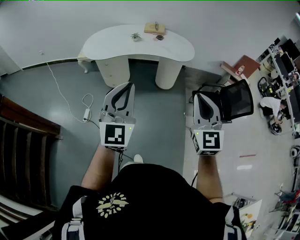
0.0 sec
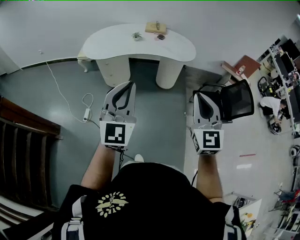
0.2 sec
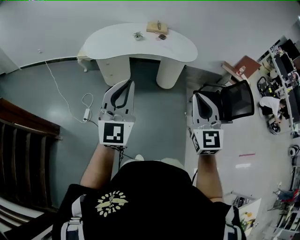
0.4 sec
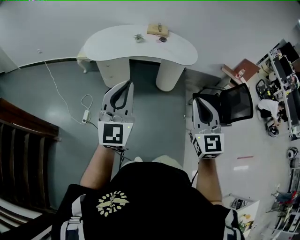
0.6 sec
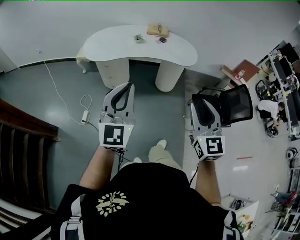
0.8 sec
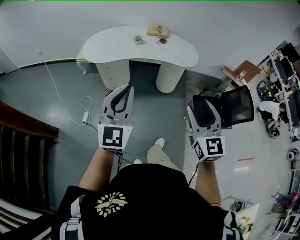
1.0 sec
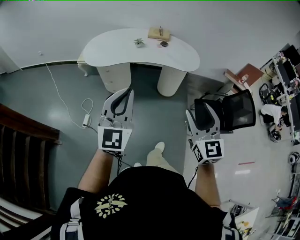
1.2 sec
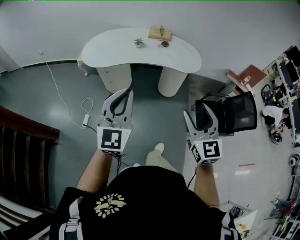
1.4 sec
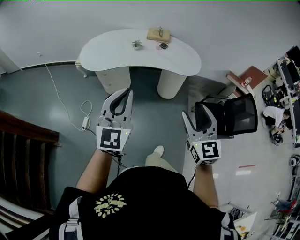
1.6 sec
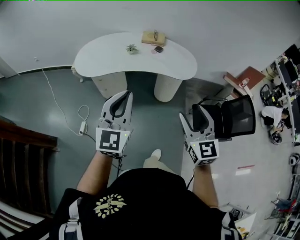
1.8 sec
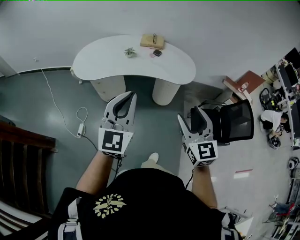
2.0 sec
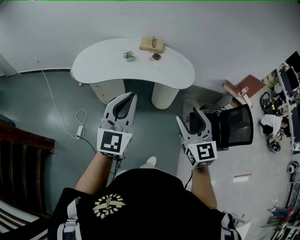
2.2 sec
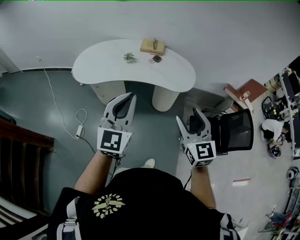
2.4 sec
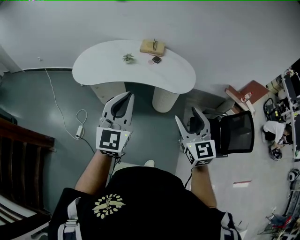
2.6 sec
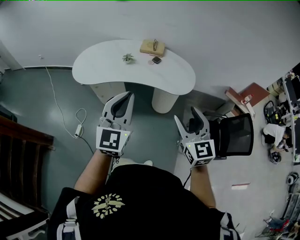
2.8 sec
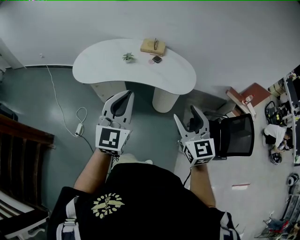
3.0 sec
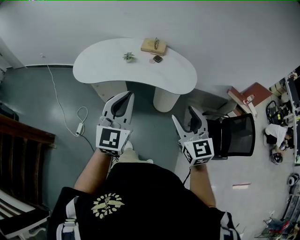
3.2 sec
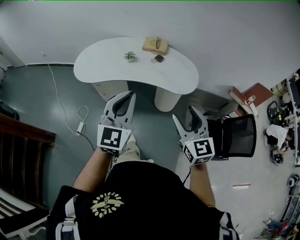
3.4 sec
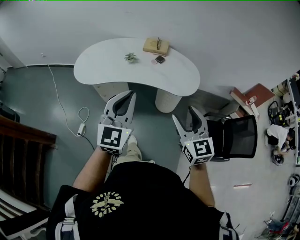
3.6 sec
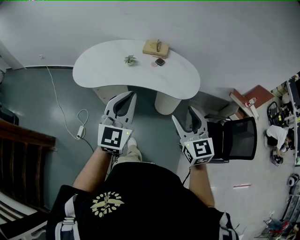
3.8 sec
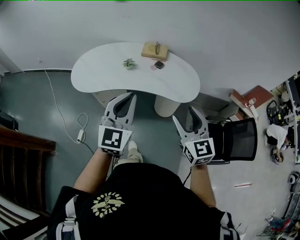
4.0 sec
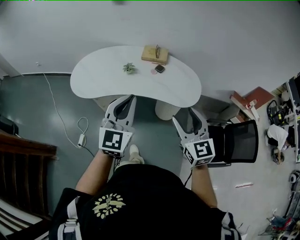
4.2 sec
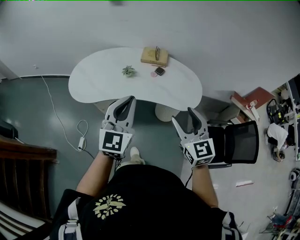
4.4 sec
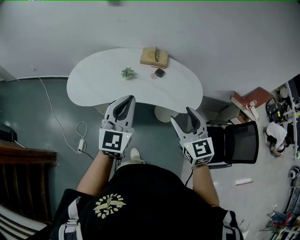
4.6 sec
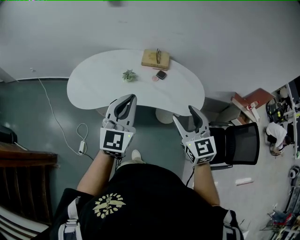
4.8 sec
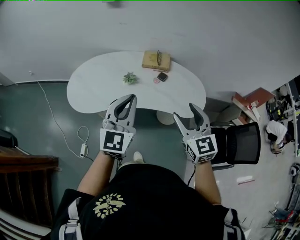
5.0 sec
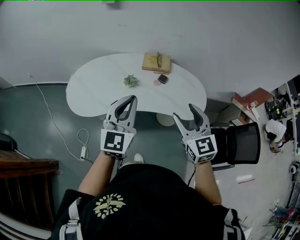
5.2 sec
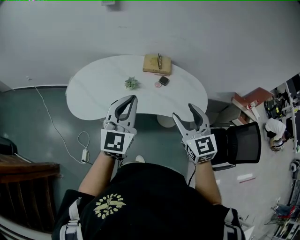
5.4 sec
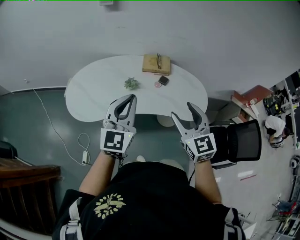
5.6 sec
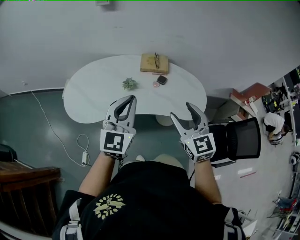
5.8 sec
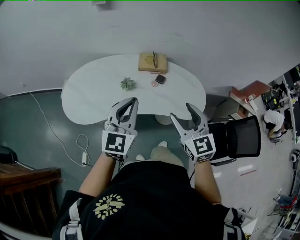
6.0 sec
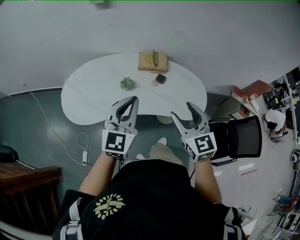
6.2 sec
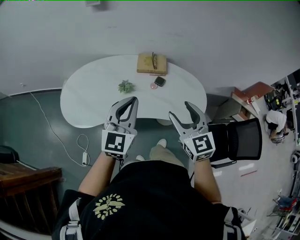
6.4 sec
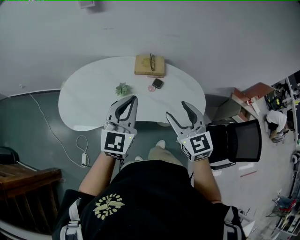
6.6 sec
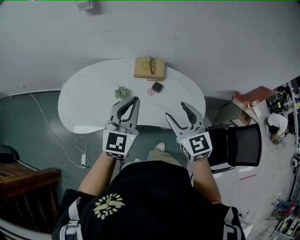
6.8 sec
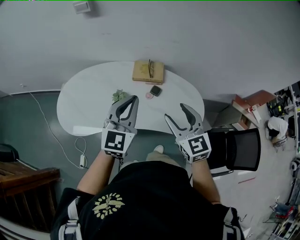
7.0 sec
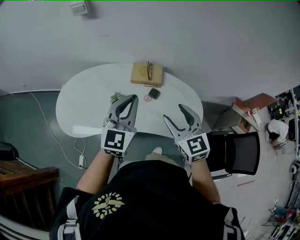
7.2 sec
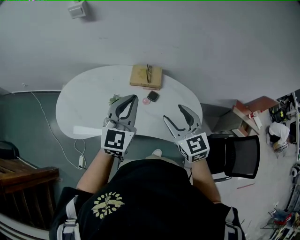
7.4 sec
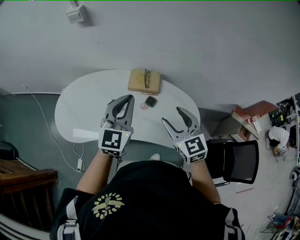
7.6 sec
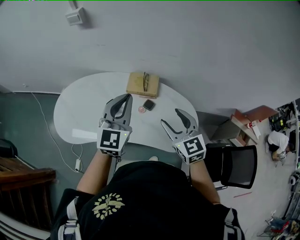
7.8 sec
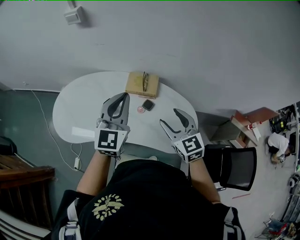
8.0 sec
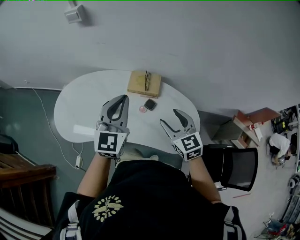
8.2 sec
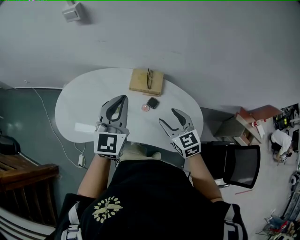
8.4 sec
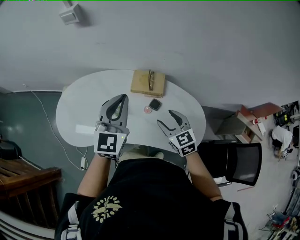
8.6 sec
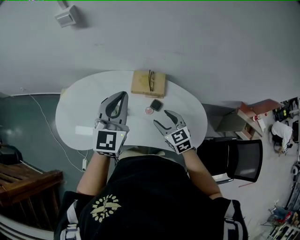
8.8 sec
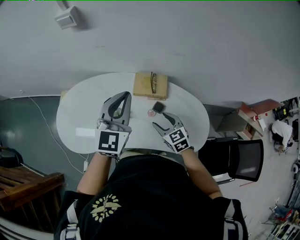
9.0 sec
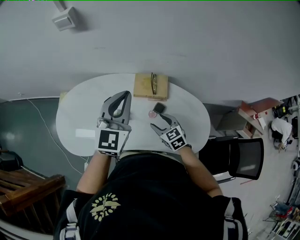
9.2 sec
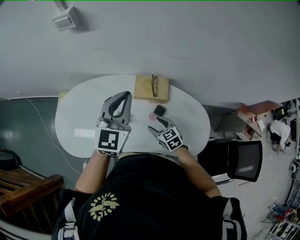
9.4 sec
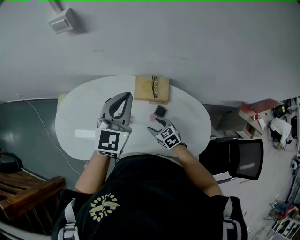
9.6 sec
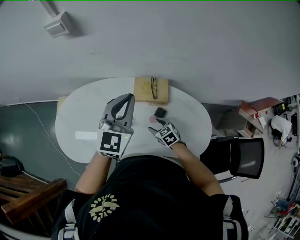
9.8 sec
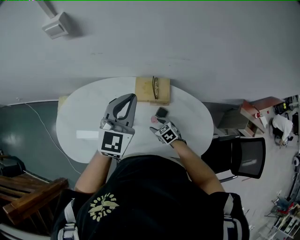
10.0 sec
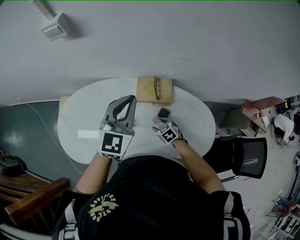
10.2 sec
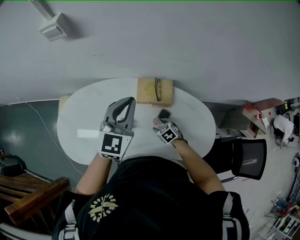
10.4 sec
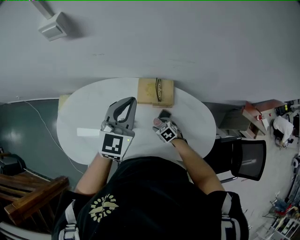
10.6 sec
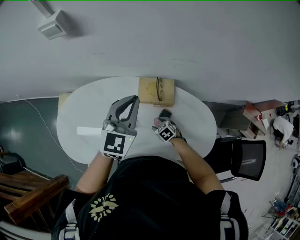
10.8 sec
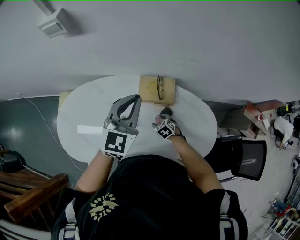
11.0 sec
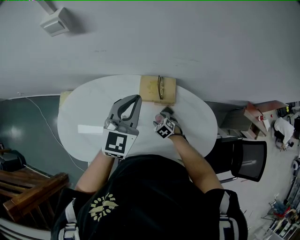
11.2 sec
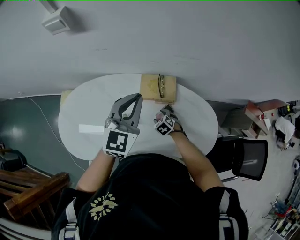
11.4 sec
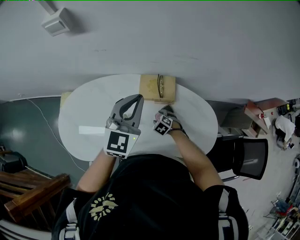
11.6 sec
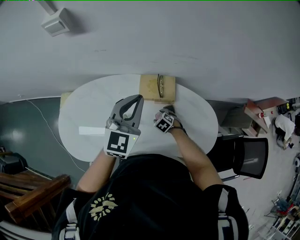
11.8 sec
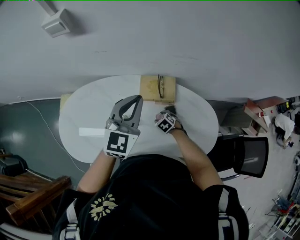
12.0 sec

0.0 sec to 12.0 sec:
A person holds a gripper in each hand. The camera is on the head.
0.0 sec to 1.6 sec: Both grippers travel together forward, about 15 cm. The right gripper opens its fingers.
1.6 sec to 3.0 sec: Both grippers travel together forward and to the right, roughly 20 cm.
3.0 sec to 4.4 sec: Both grippers travel together forward, about 15 cm.
4.4 sec to 6.0 sec: The grippers both shift forward and to the left by some 15 cm.
6.0 sec to 7.6 sec: Both grippers move forward and to the right, roughly 20 cm.
7.6 sec to 9.0 sec: The right gripper heads downward, forward and to the left, covering approximately 20 cm. Meanwhile the left gripper heads forward, covering roughly 10 cm.
9.0 sec to 10.4 sec: The left gripper travels forward by some 10 cm. Meanwhile the right gripper heads downward, covering approximately 20 cm, and turns by some 30 degrees.
10.4 sec to 12.0 sec: The grippers make only small movements.

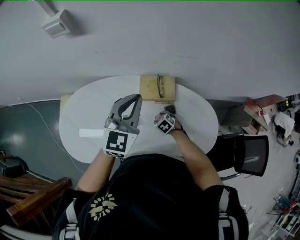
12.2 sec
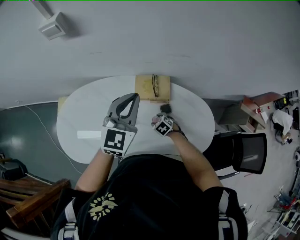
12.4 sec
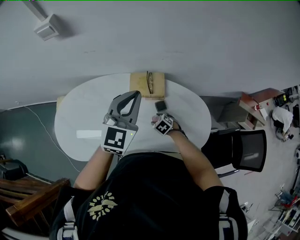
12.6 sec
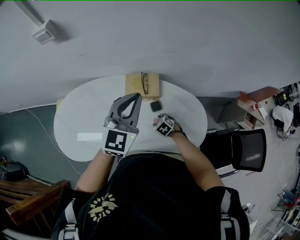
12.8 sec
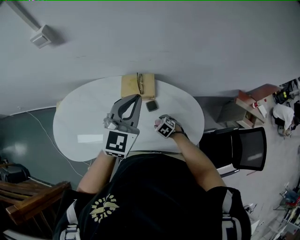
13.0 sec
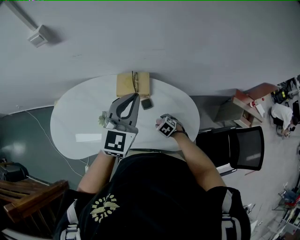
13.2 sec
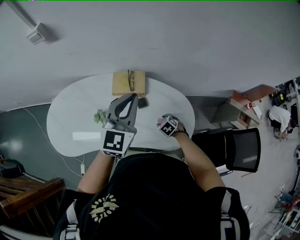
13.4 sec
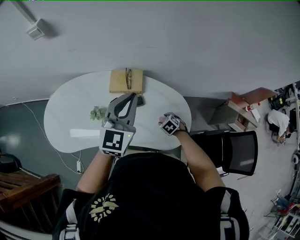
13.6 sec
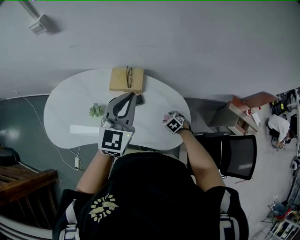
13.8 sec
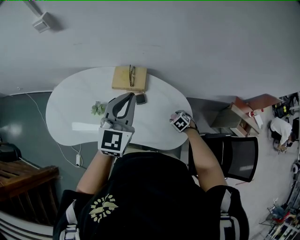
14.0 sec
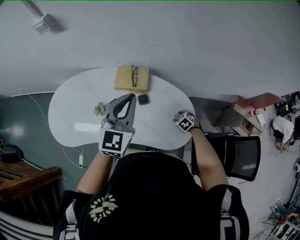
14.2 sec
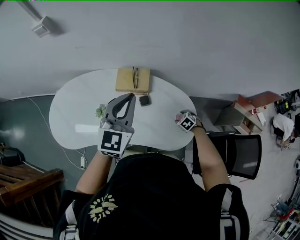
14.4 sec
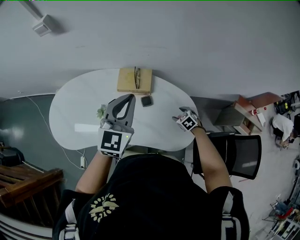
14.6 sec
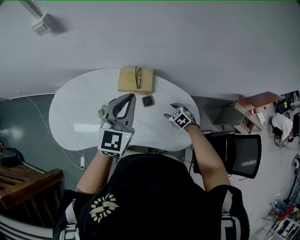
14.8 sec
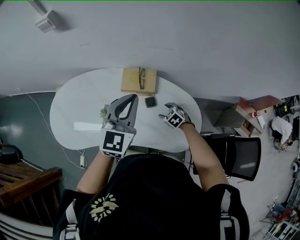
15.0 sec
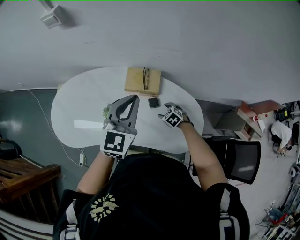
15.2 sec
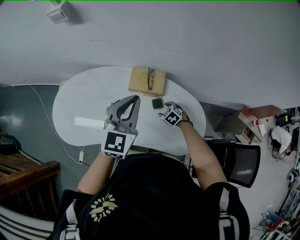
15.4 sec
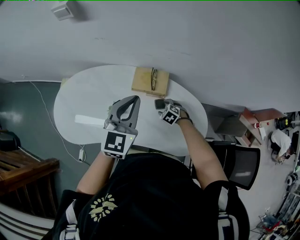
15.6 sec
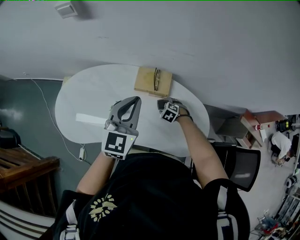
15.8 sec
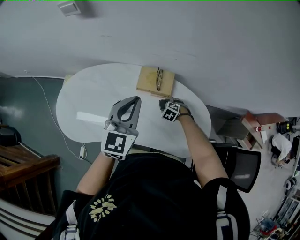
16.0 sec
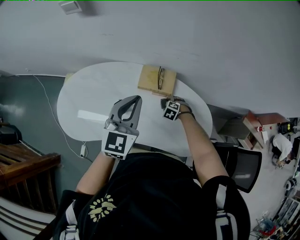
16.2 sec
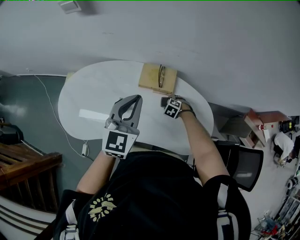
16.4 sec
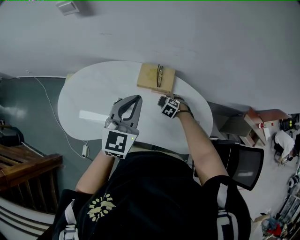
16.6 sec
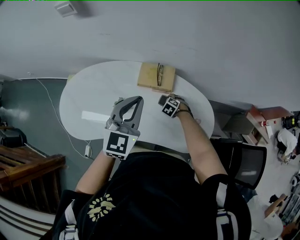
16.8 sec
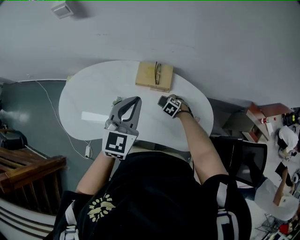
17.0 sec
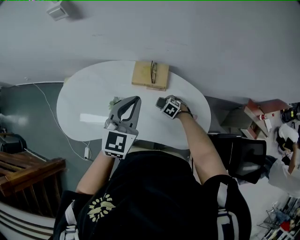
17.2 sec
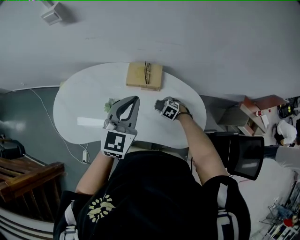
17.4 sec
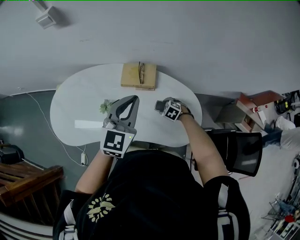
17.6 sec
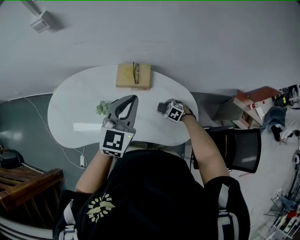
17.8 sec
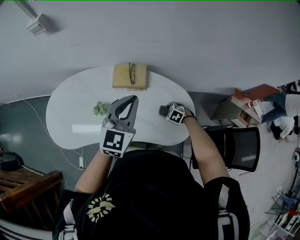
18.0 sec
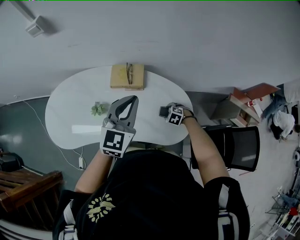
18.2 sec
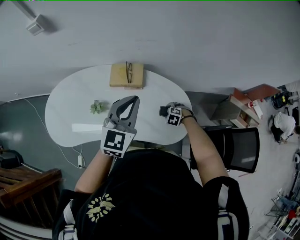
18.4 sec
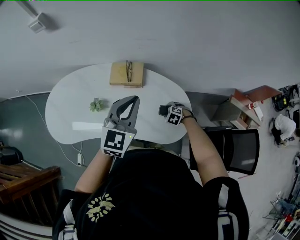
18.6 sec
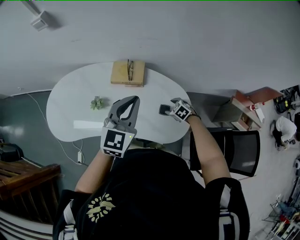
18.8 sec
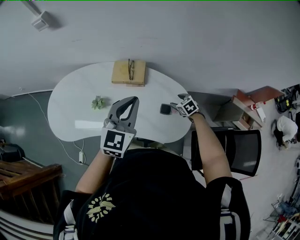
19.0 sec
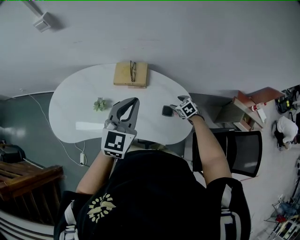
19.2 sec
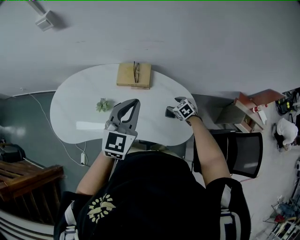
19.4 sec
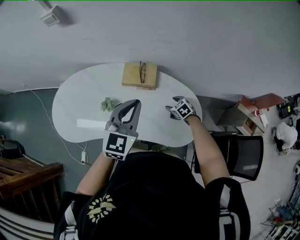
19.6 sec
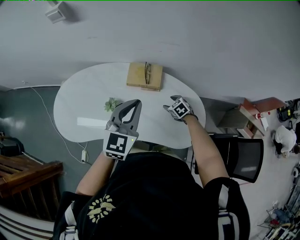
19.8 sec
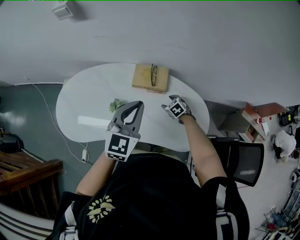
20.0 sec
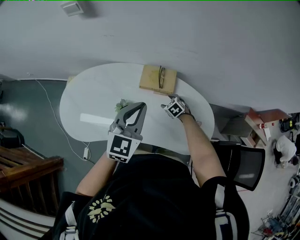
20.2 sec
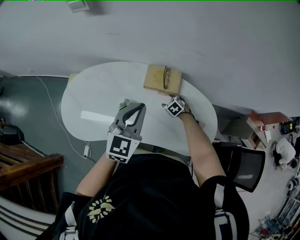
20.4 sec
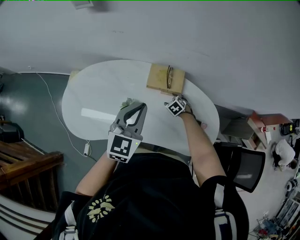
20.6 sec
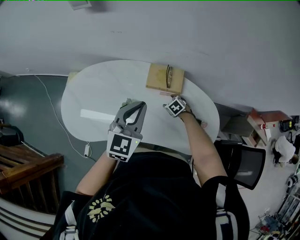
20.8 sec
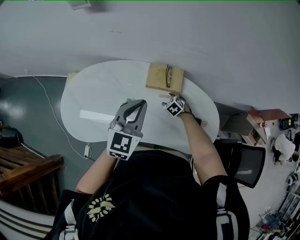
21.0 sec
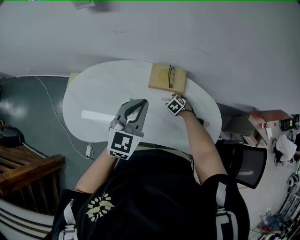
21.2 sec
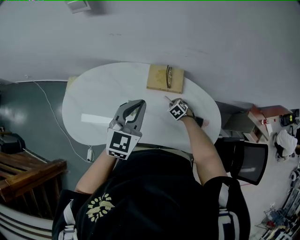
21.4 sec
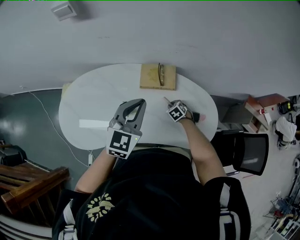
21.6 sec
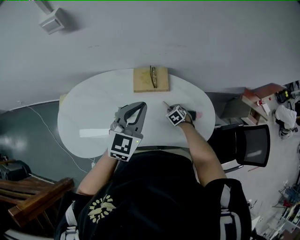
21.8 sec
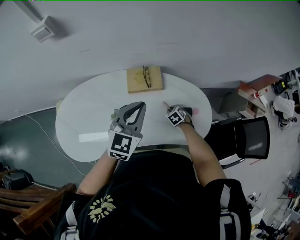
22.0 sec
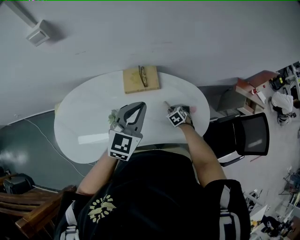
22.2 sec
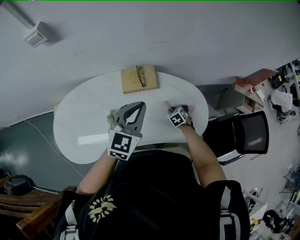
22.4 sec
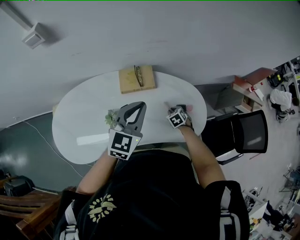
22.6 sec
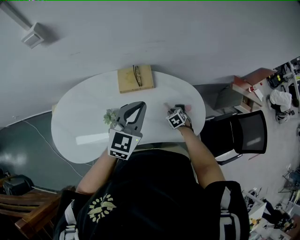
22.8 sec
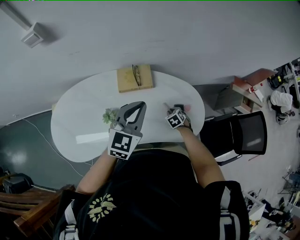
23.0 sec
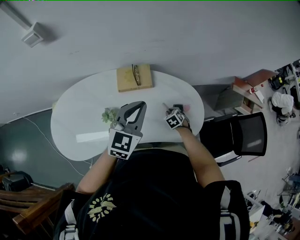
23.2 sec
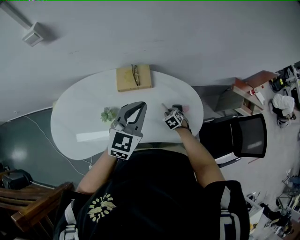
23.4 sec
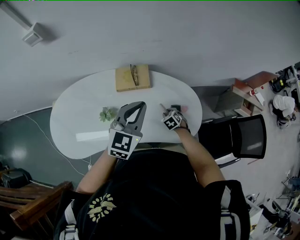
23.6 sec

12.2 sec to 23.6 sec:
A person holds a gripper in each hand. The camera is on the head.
12.2 sec to 13.6 sec: The two grippers go about 20 cm to the right and backward.
13.6 sec to 15.0 sec: The right gripper goes about 10 cm forward and to the left. The left gripper travels to the left by roughly 5 cm.
15.0 sec to 16.4 sec: The left gripper travels to the left by about 5 cm. The right gripper shifts approximately 10 cm forward and to the left, and swivels about 20 degrees.
16.4 sec to 17.8 sec: The left gripper moves to the right and backward, roughly 10 cm, while the right gripper moves backward and to the right, roughly 15 cm.
17.8 sec to 19.4 sec: The right gripper changes its angle by approximately 20 degrees.
19.4 sec to 20.8 sec: Both grippers move to the left and forward, some 20 cm.
20.8 sec to 22.2 sec: The right gripper changes place by roughly 15 cm, swivels roughly 20 degrees, and closes its fingers; the left gripper moves about 10 cm.
22.2 sec to 23.6 sec: The left gripper shifts about 5 cm to the right.
